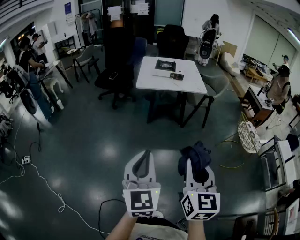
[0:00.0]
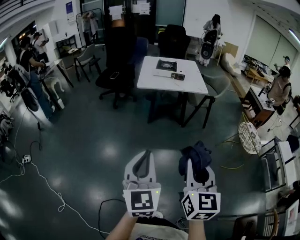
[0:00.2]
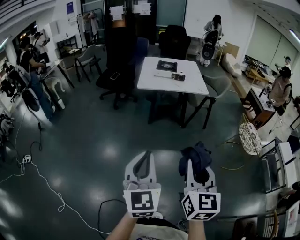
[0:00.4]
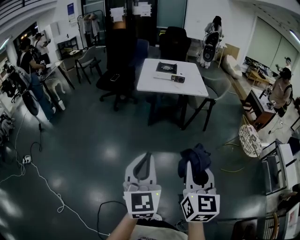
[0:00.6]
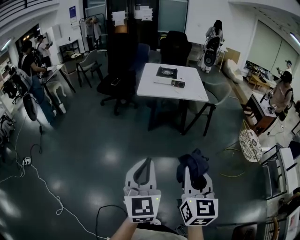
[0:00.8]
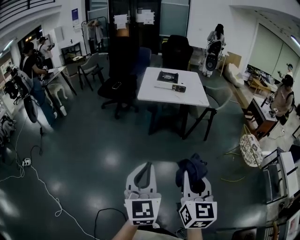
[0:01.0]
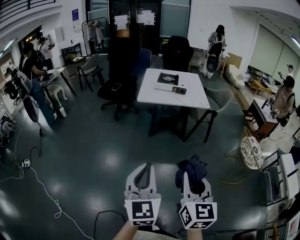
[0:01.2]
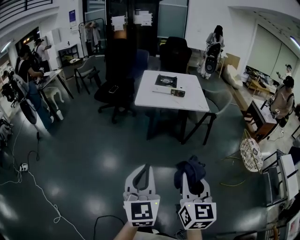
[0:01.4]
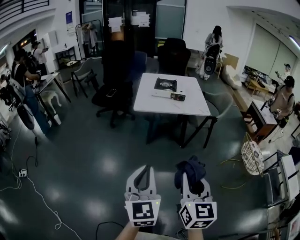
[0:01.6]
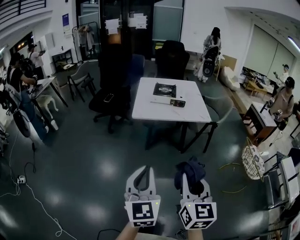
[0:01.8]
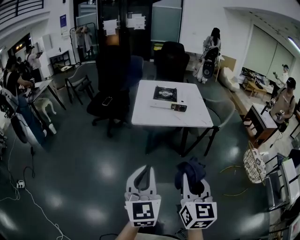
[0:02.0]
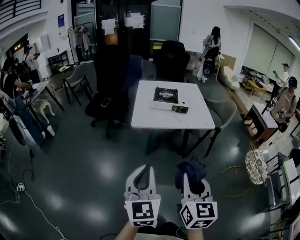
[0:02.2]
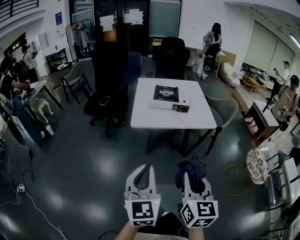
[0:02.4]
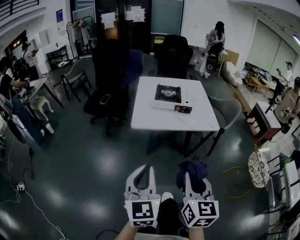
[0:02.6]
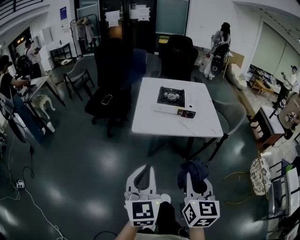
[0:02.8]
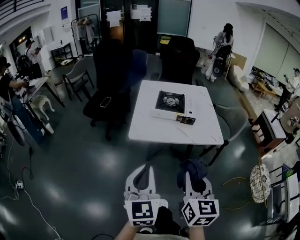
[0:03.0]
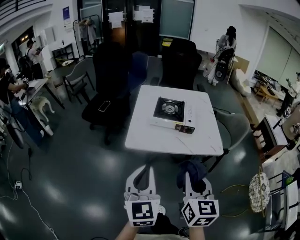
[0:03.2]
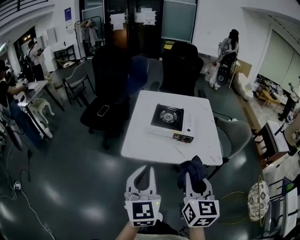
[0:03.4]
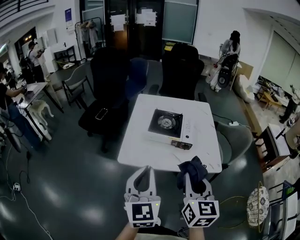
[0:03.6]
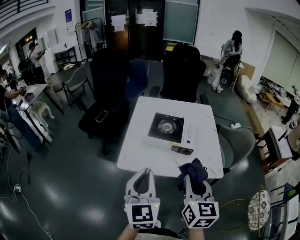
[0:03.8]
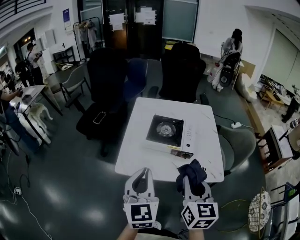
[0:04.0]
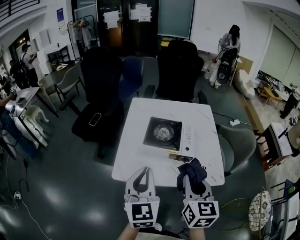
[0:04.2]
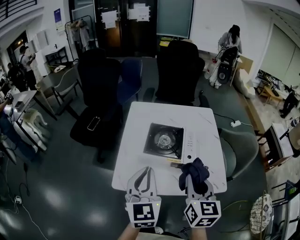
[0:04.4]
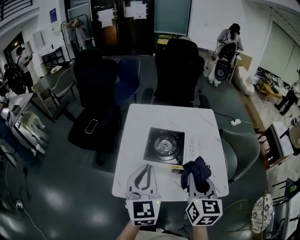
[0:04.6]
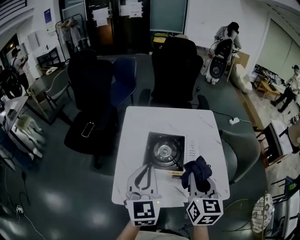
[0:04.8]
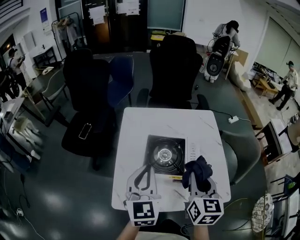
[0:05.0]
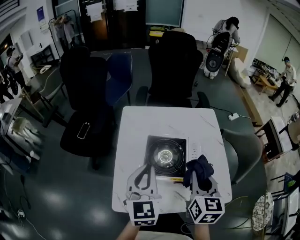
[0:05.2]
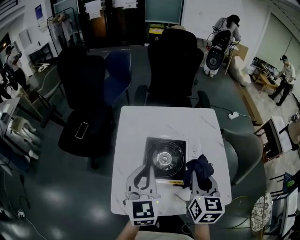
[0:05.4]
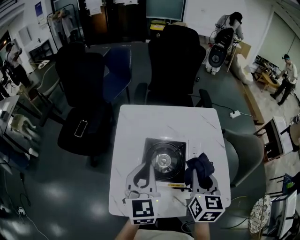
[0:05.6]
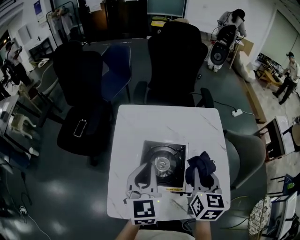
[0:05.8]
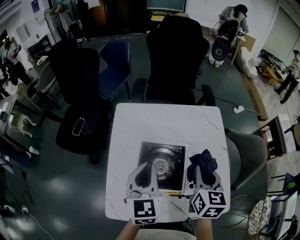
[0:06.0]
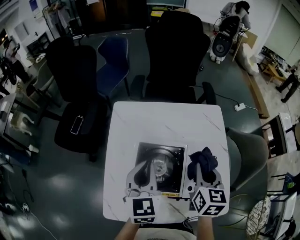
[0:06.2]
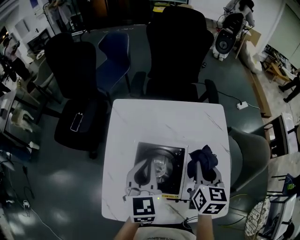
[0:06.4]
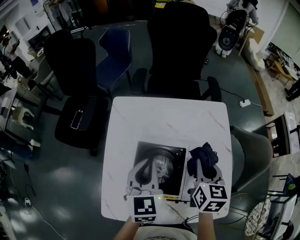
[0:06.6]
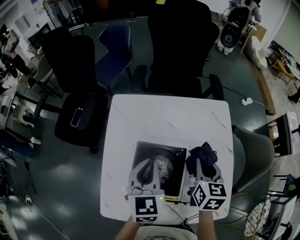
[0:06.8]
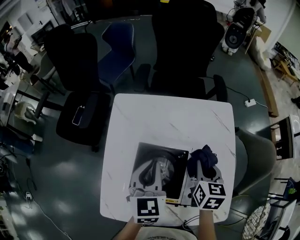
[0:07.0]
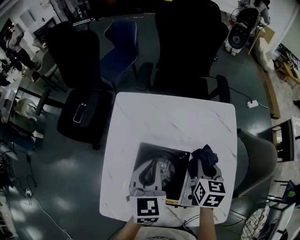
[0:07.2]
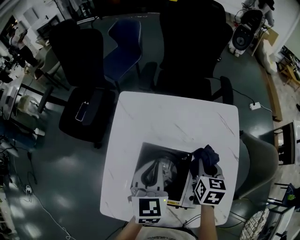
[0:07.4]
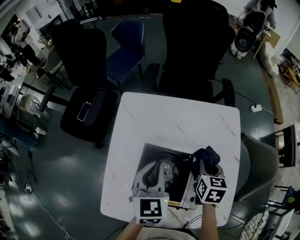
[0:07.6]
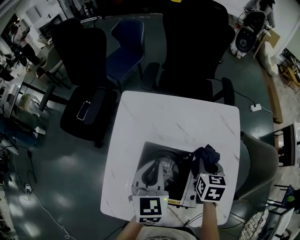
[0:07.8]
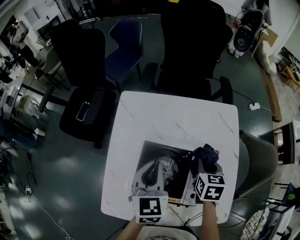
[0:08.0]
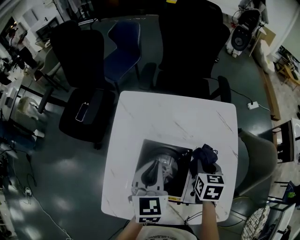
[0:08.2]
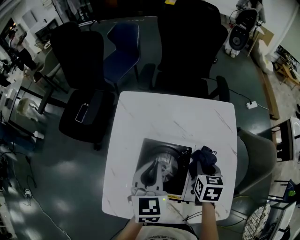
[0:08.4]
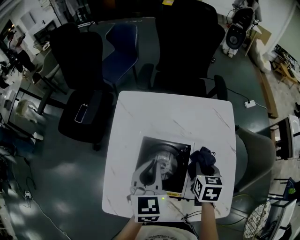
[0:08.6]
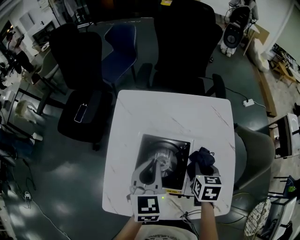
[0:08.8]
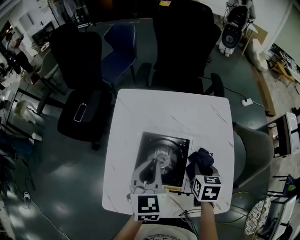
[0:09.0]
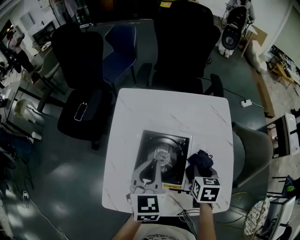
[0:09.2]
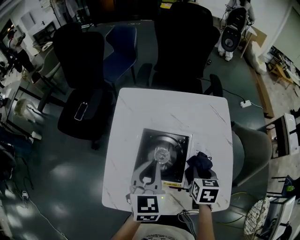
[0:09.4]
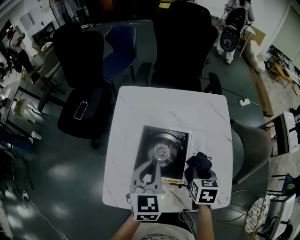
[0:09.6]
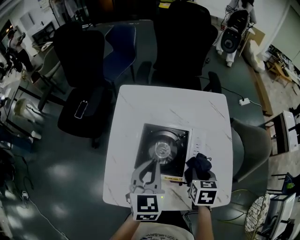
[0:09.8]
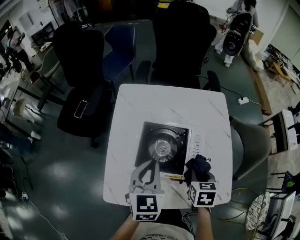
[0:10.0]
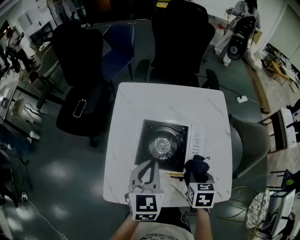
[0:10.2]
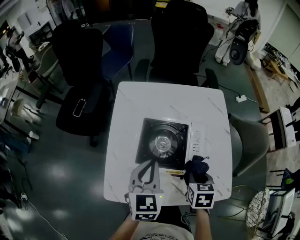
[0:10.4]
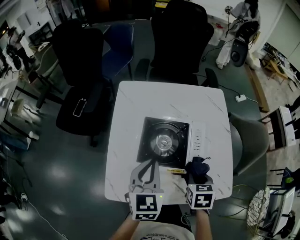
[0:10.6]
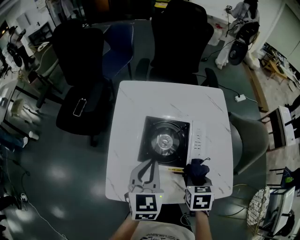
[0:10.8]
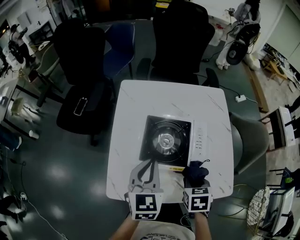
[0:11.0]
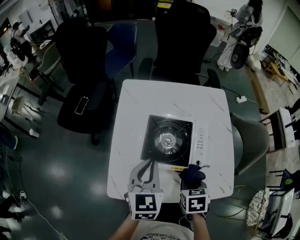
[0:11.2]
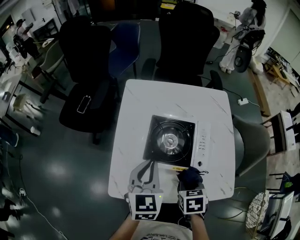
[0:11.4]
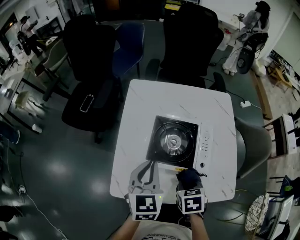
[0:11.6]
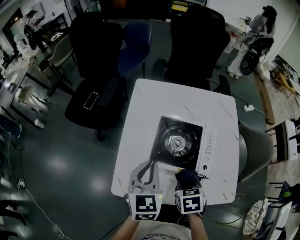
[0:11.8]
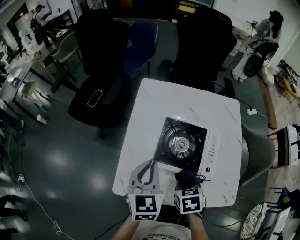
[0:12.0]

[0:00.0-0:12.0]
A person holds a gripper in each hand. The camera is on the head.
0:00.0 to 0:01.6: The two grippers go roughly 15 cm forward.
0:01.6 to 0:03.0: Both grippers move forward, approximately 35 cm.
0:03.0 to 0:04.4: Both grippers travel together forward, some 35 cm.
0:04.4 to 0:06.0: The two grippers go roughly 25 cm forward.
0:06.0 to 0:07.6: The right gripper shifts some 15 cm downward and forward; the left gripper travels downward and forward by some 10 cm.
0:07.6 to 0:09.0: The left gripper travels backward by about 5 cm. The right gripper moves backward, roughly 10 cm.
0:09.0 to 0:10.4: The left gripper travels backward by about 10 cm. The right gripper shifts about 10 cm backward.
0:10.4 to 0:12.0: The right gripper shifts some 10 cm to the left, and rotates roughly 20 degrees. Meanwhile the left gripper is displaced to the left by roughly 10 cm.

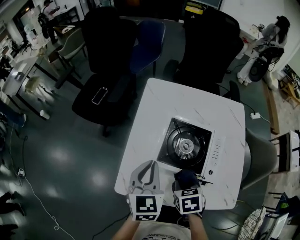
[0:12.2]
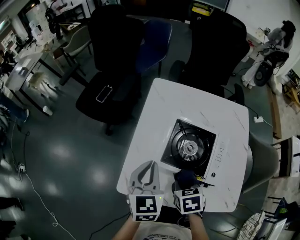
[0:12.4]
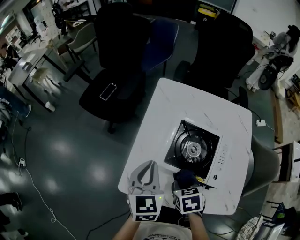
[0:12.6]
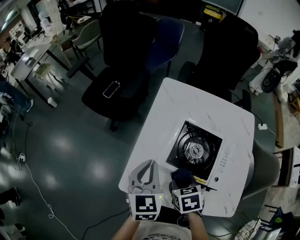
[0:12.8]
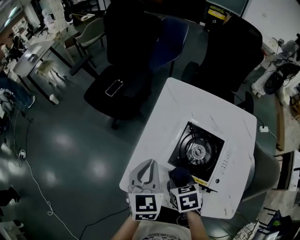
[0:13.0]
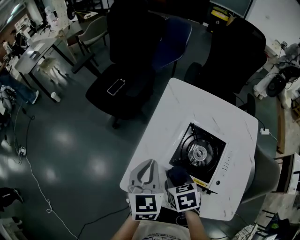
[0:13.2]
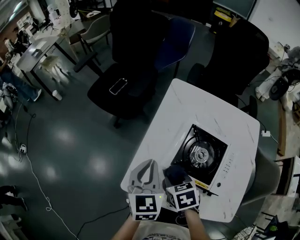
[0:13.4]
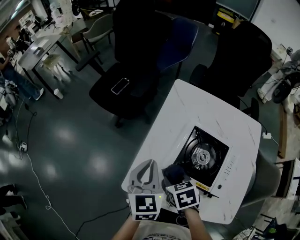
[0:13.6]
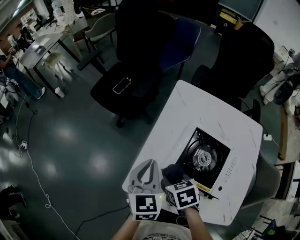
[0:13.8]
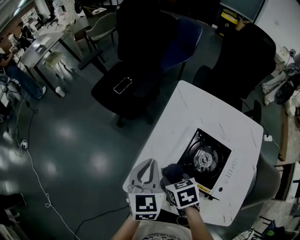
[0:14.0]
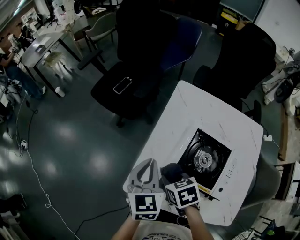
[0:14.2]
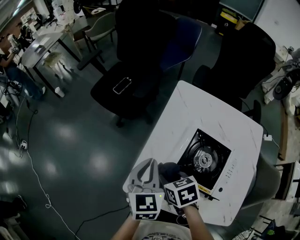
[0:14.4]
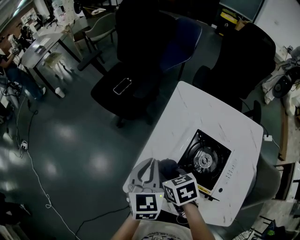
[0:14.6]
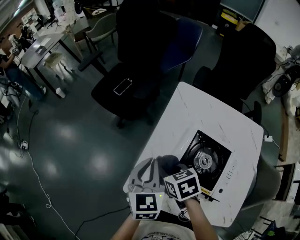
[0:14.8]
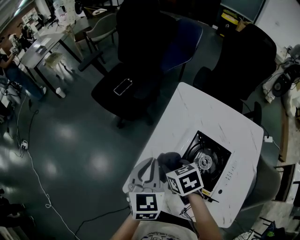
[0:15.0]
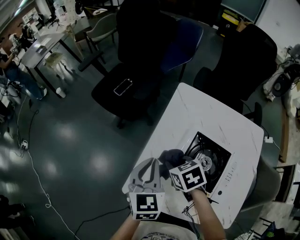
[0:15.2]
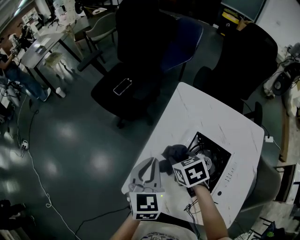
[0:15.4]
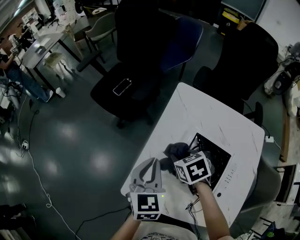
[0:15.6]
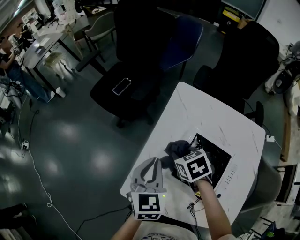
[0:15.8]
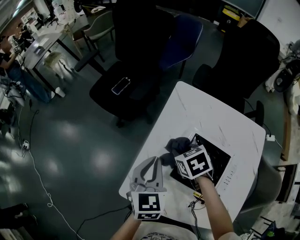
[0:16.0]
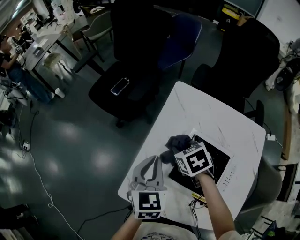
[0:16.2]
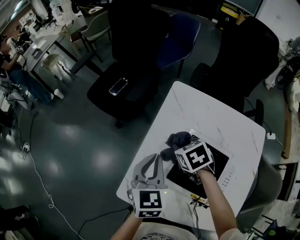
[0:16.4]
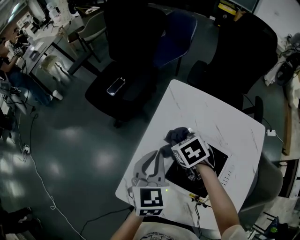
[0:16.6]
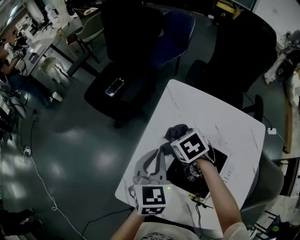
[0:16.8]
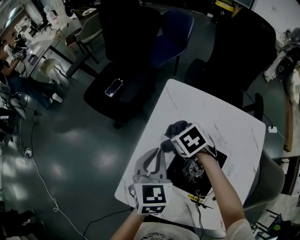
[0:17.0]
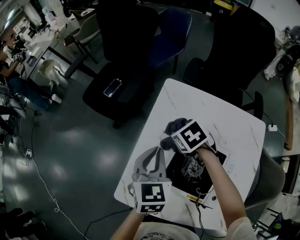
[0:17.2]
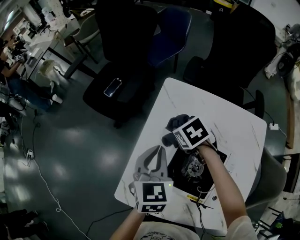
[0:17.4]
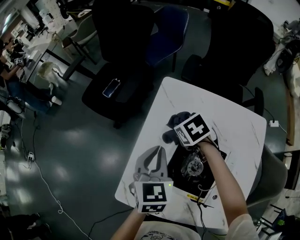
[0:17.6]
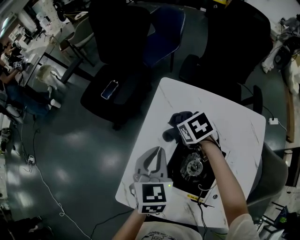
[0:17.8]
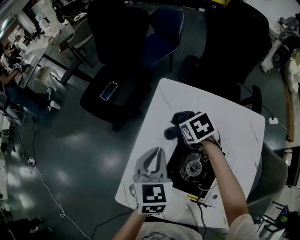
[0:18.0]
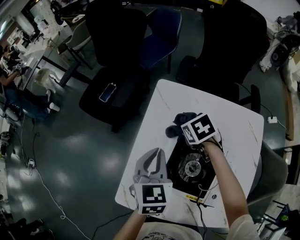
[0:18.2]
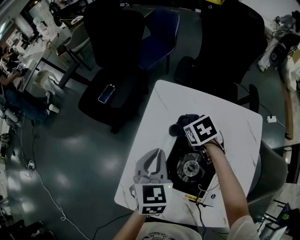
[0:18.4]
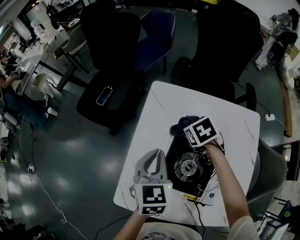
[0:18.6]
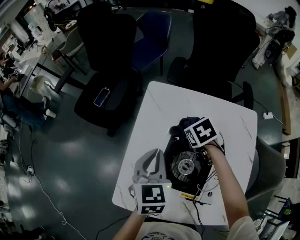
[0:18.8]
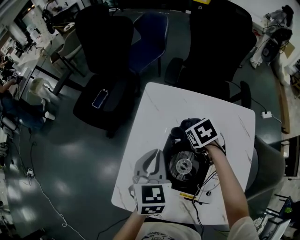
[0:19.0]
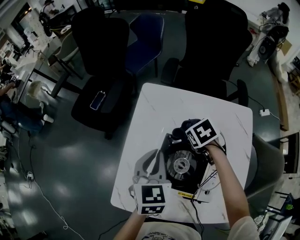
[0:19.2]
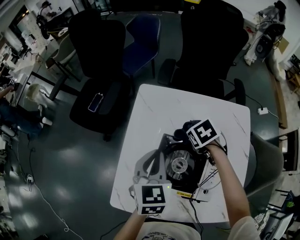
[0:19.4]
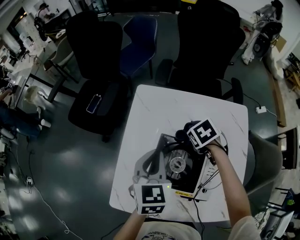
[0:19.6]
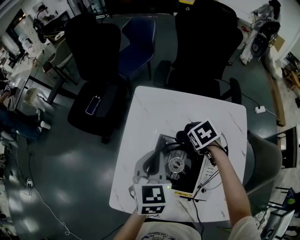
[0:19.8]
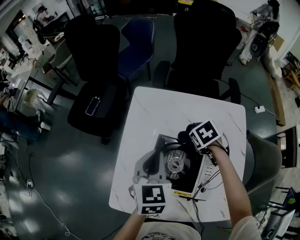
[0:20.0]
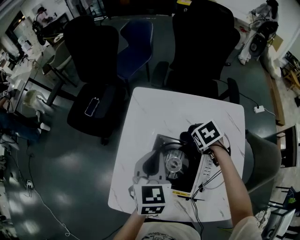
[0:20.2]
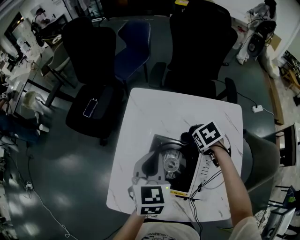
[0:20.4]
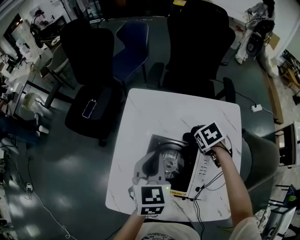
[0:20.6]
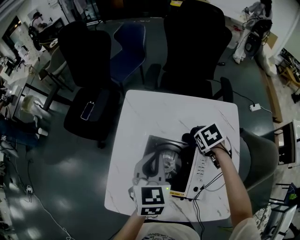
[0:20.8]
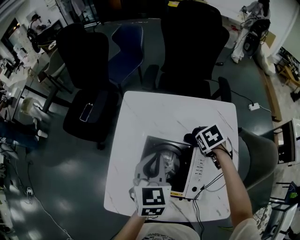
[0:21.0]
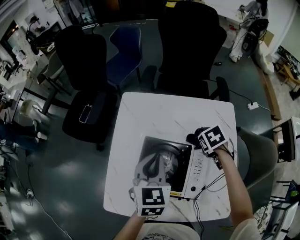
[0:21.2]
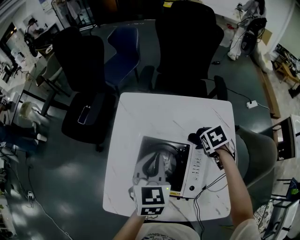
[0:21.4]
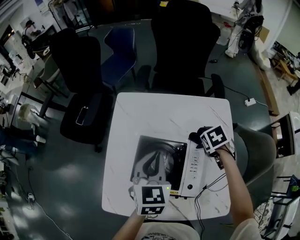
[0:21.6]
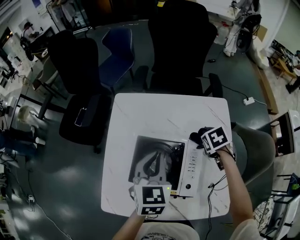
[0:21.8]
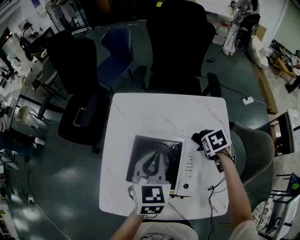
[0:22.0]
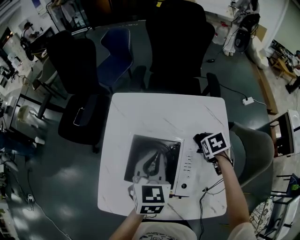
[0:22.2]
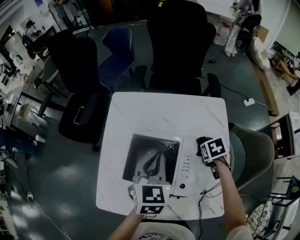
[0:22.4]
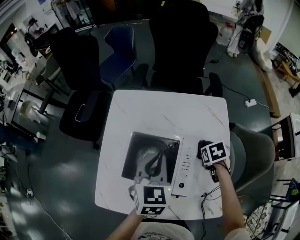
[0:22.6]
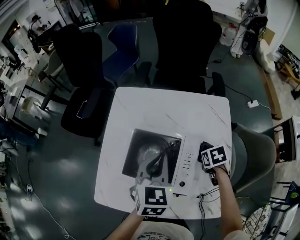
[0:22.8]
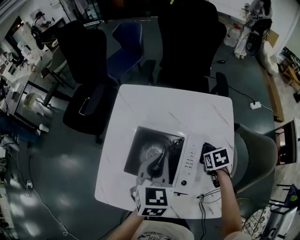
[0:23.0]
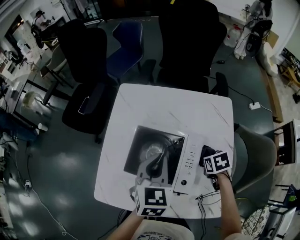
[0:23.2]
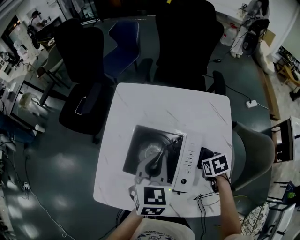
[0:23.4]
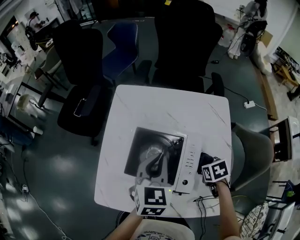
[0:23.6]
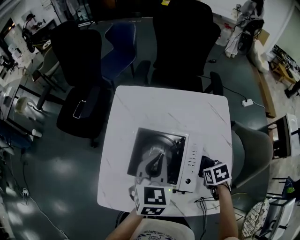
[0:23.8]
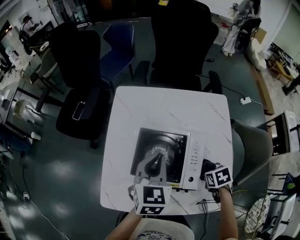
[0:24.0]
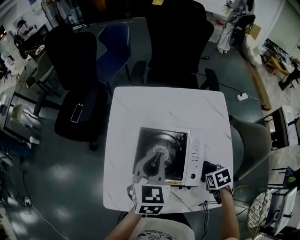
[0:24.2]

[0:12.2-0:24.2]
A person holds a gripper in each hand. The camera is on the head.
0:12.2 to 0:13.8: The left gripper ends up some 10 cm from where it was. The right gripper changes place by about 15 cm, and rotates some 20 degrees.
0:13.8 to 0:15.2: The right gripper is displaced forward by some 10 cm.
0:15.2 to 0:16.6: The left gripper moves to the right, approximately 5 cm. The right gripper travels to the right and forward by approximately 10 cm.
0:16.6 to 0:18.2: The right gripper moves to the right, approximately 10 cm, while the left gripper heads to the right, covering roughly 5 cm.
0:18.2 to 0:19.8: The right gripper shifts approximately 15 cm to the right and backward. The left gripper shifts roughly 5 cm to the right.
0:19.8 to 0:21.2: The right gripper ends up approximately 10 cm from where it was. Meanwhile the left gripper moves roughly 5 cm.
0:21.2 to 0:22.6: The right gripper goes approximately 10 cm backward and to the right. Meanwhile the left gripper travels to the right by some 5 cm.
0:22.6 to 0:24.2: The right gripper ends up roughly 15 cm from where it was. The left gripper ends up approximately 5 cm from where it was.
